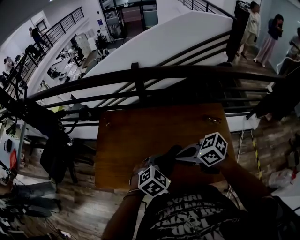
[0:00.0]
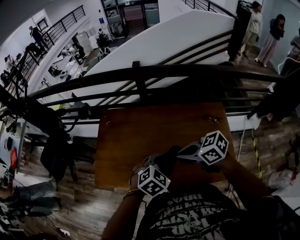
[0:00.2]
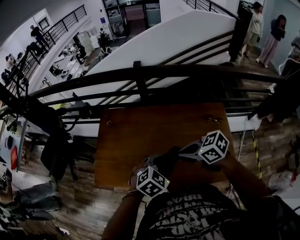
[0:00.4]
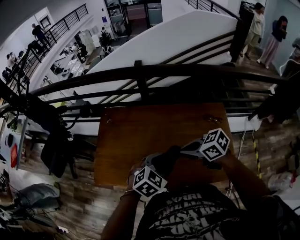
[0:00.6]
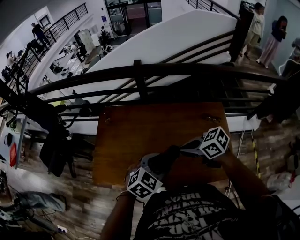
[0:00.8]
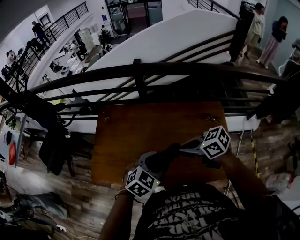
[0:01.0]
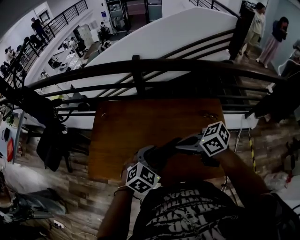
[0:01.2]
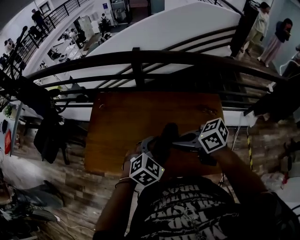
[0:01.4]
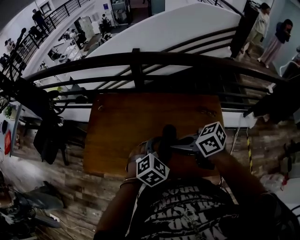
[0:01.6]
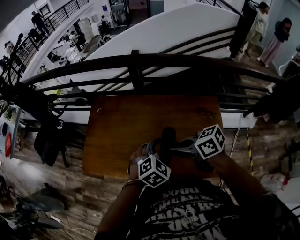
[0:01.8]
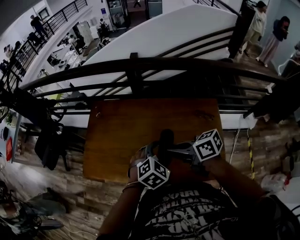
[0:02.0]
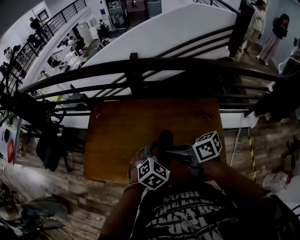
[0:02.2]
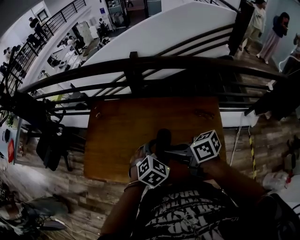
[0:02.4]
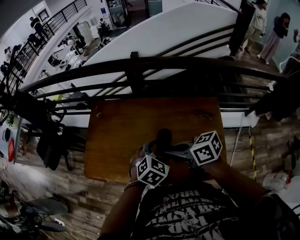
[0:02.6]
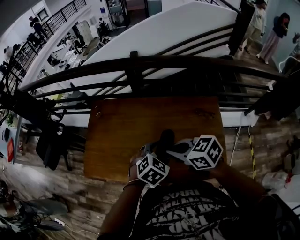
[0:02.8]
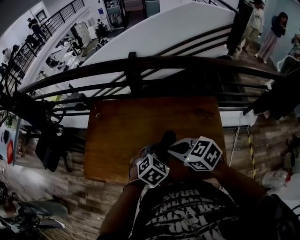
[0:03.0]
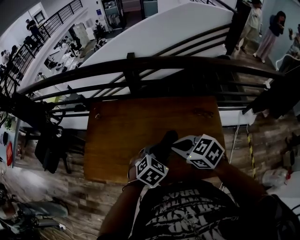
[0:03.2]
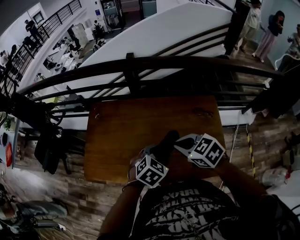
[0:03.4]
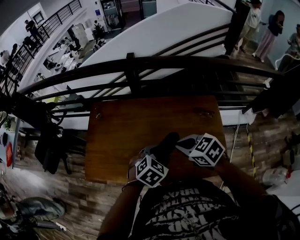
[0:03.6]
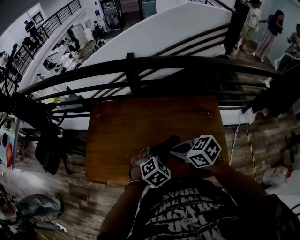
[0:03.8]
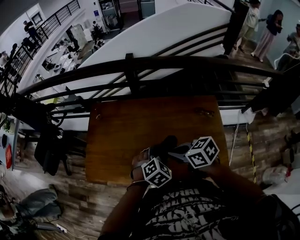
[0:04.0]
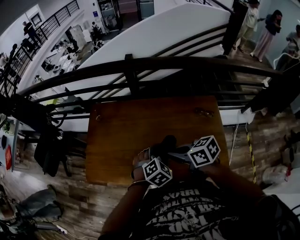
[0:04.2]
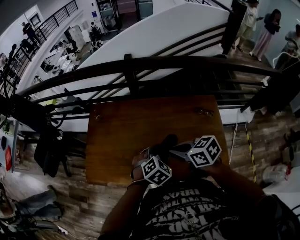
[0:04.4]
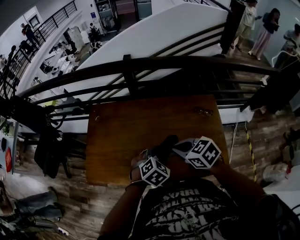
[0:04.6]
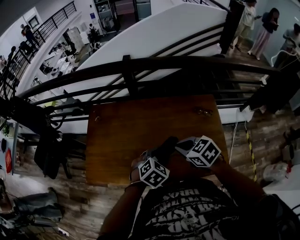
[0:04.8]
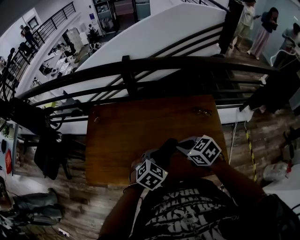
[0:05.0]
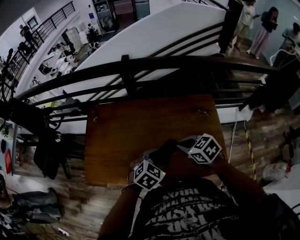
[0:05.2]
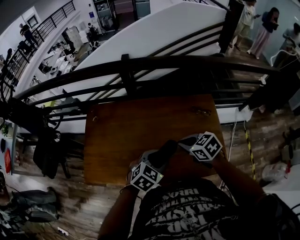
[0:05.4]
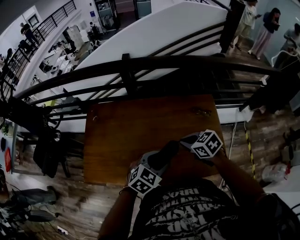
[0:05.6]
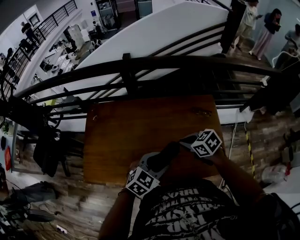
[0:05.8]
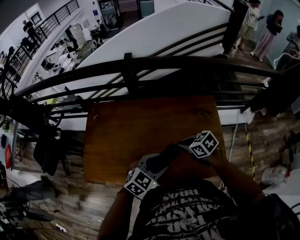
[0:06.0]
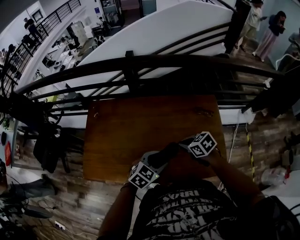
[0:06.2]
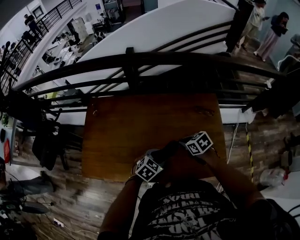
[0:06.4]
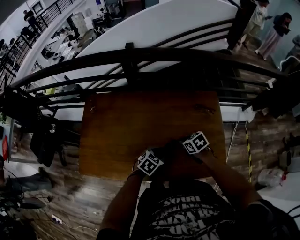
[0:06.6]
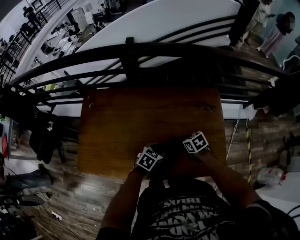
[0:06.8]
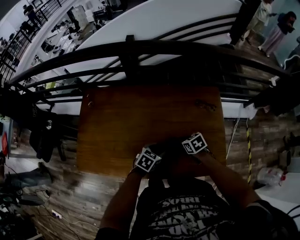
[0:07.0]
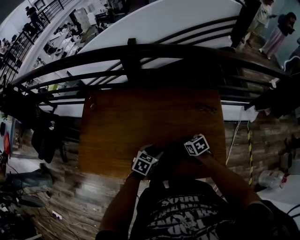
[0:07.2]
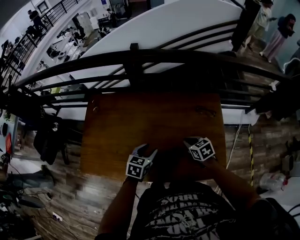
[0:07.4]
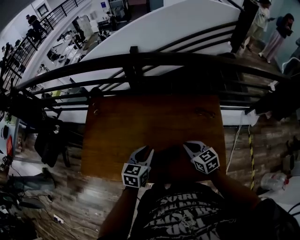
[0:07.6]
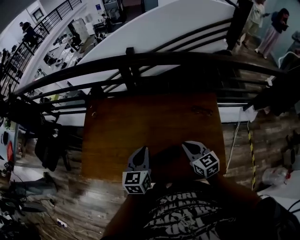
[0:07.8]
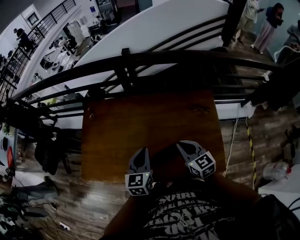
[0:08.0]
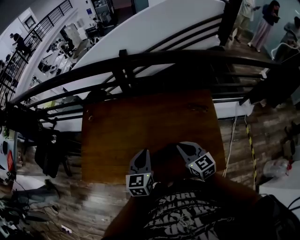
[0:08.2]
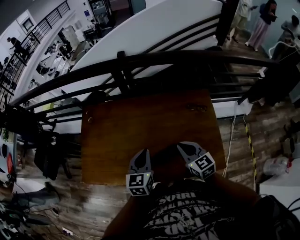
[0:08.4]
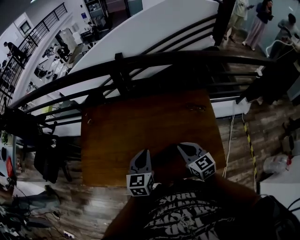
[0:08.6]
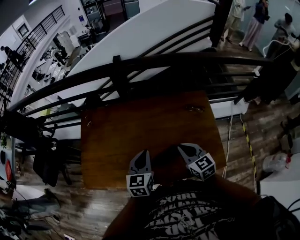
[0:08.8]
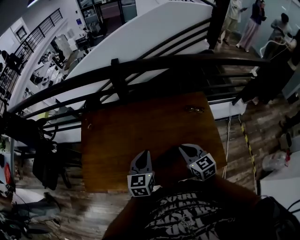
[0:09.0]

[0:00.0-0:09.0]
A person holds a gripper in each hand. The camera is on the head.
0:00.0 to 0:01.6: The grippers stay close to where they were, moving slightly.
0:01.6 to 0:03.0: The right gripper swivels some 30 degrees.
0:04.4 to 0:06.0: The left gripper shifts by some 5 cm, and turns by about 30 degrees, while the right gripper heads downward and to the right, covering about 10 cm.
0:06.0 to 0:07.6: The left gripper heads forward, covering roughly 5 cm, moves roughly 20 cm downward and comes back, and rotates roughly 40 degrees. Meanwhile the right gripper goes downward and returns, about 15 cm each way, and changes its angle by about 20 degrees.
0:07.6 to 0:09.0: The right gripper goes approximately 5 cm upward.

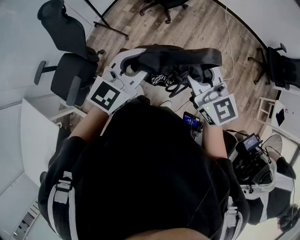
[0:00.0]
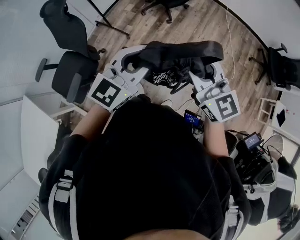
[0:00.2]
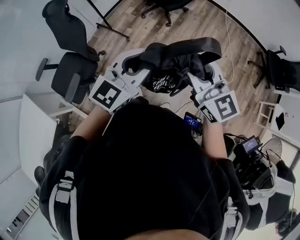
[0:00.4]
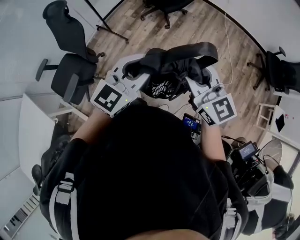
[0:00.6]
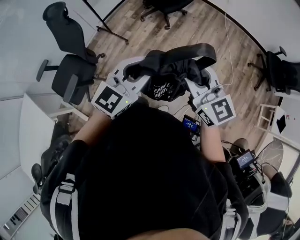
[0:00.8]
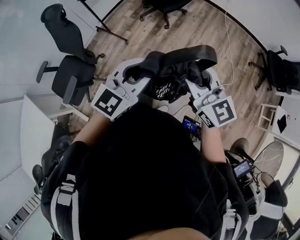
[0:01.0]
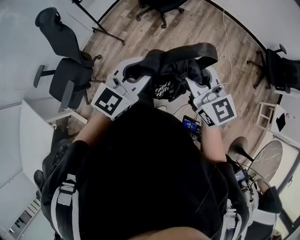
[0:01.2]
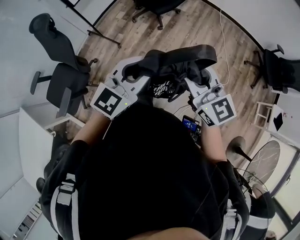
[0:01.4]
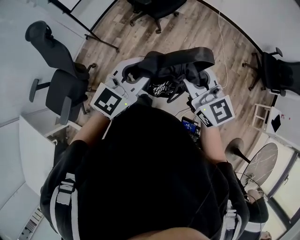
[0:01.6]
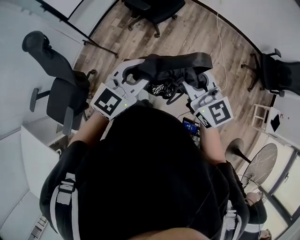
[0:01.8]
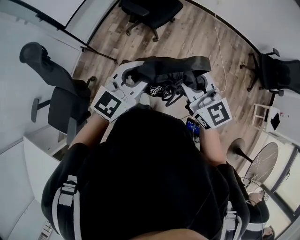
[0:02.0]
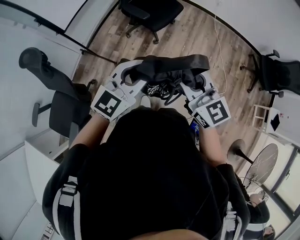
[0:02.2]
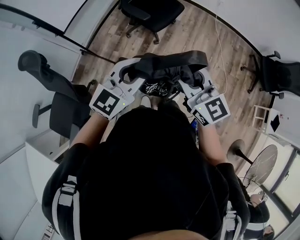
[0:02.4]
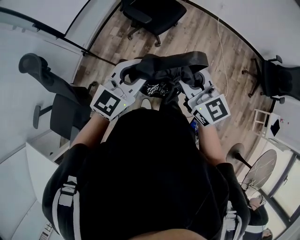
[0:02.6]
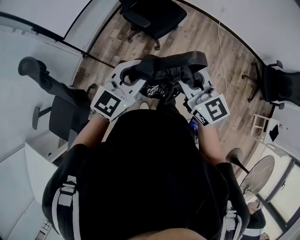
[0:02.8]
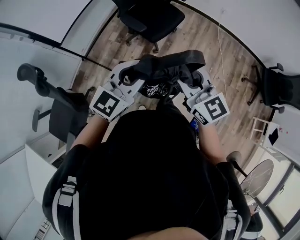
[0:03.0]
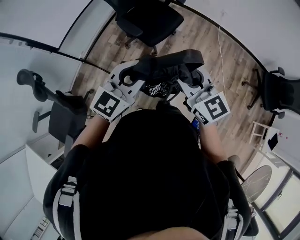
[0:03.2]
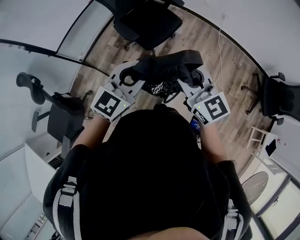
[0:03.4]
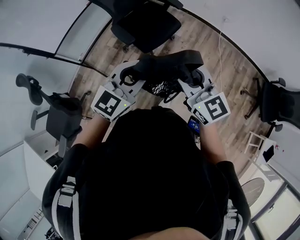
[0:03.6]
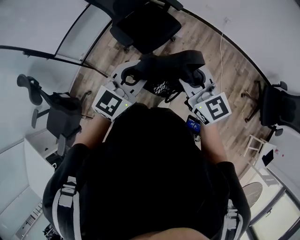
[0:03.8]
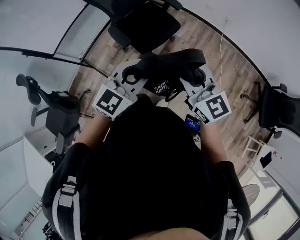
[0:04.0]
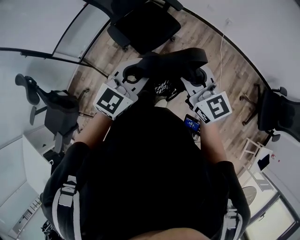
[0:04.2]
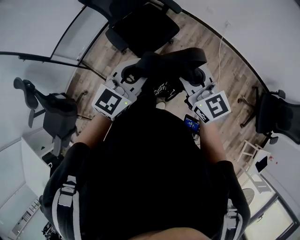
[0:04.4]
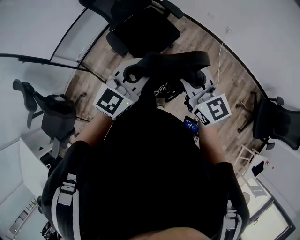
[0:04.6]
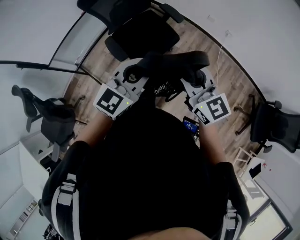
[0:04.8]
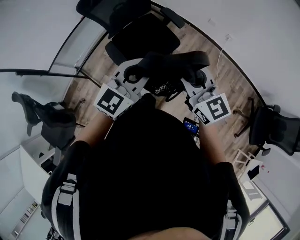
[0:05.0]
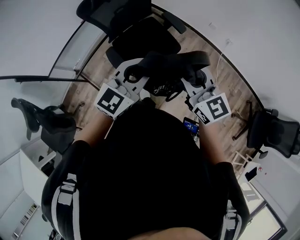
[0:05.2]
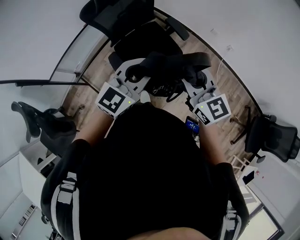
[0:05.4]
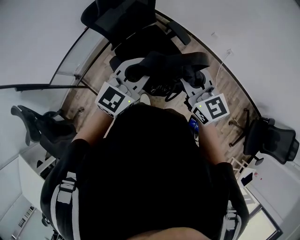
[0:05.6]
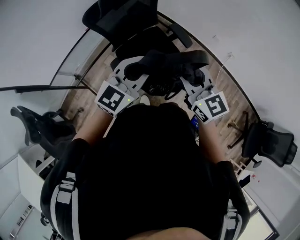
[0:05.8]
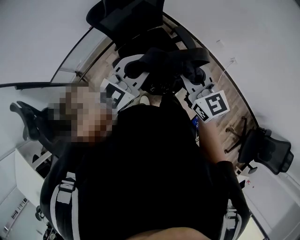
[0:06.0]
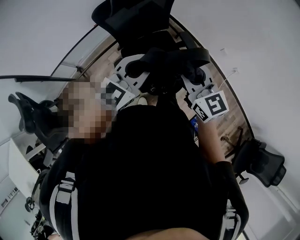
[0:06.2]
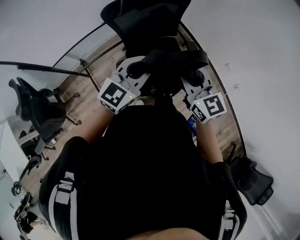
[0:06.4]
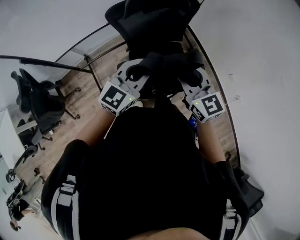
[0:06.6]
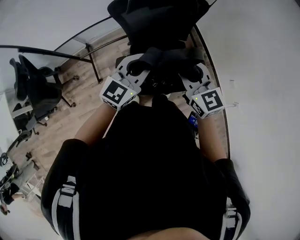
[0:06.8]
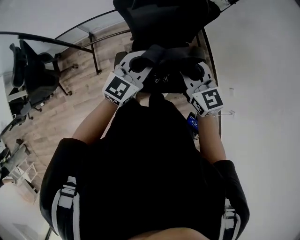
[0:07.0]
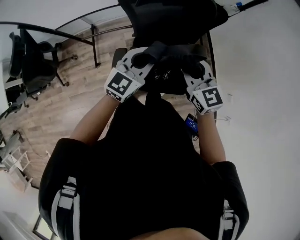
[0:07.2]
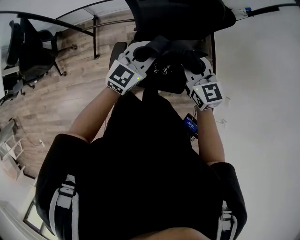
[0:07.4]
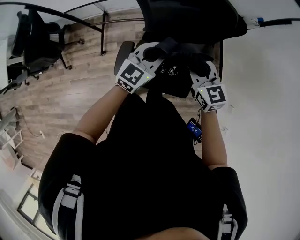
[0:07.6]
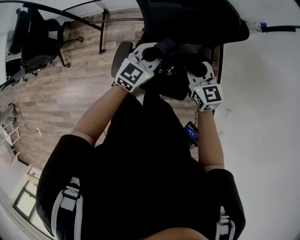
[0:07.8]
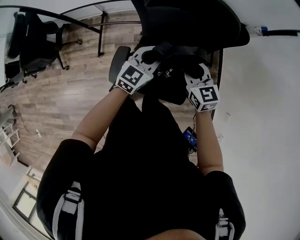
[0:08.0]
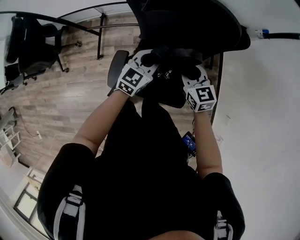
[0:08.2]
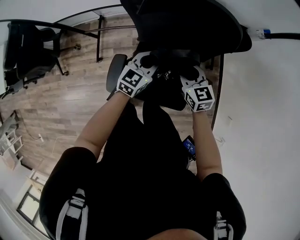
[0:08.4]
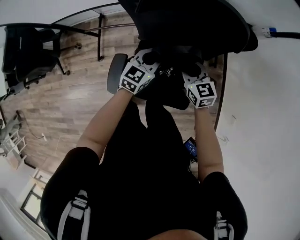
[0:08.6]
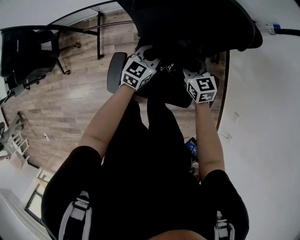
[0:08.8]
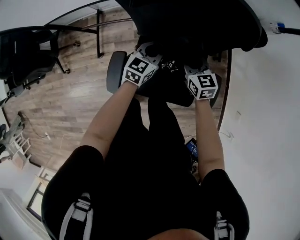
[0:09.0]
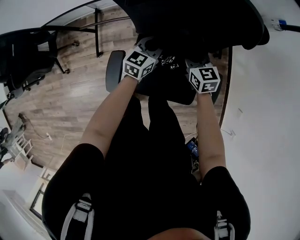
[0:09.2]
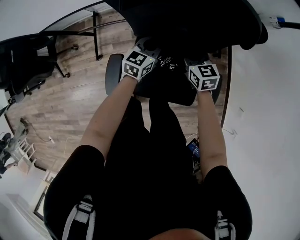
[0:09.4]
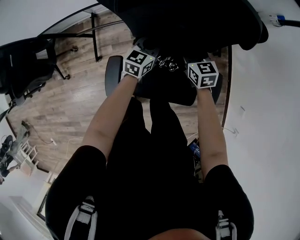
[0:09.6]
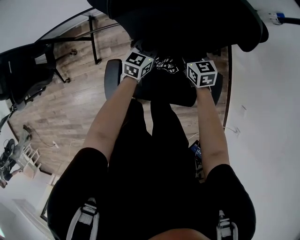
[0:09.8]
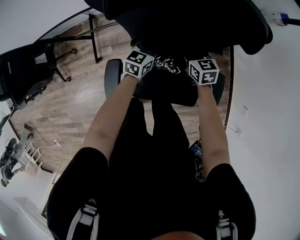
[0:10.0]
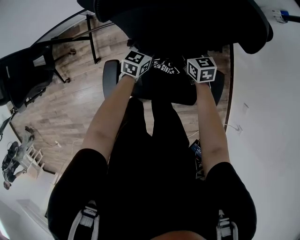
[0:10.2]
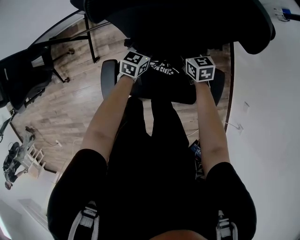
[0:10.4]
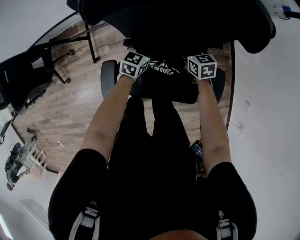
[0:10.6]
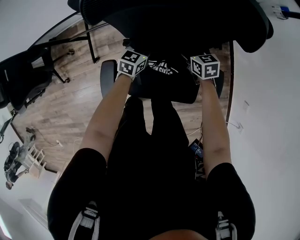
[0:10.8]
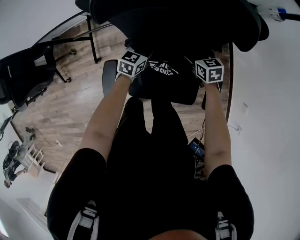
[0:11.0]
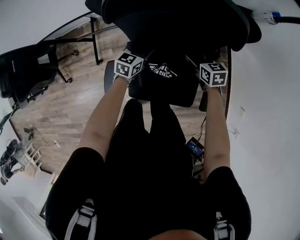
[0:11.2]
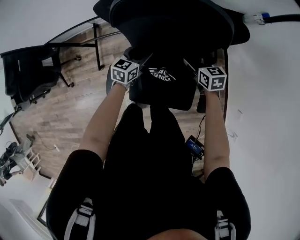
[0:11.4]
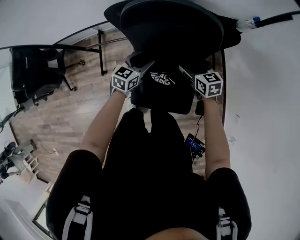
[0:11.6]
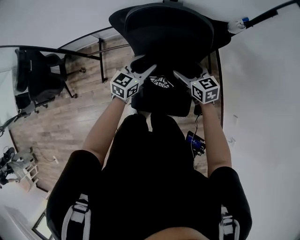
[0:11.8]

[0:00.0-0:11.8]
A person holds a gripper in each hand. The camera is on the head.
0:00.0 to 0:01.4: Both grippers travel together to the right and forward, some 10 cm.
0:01.4 to 0:03.0: Both grippers move forward, some 35 cm.
0:03.0 to 0:04.4: The left gripper moves to the right and forward, approximately 30 cm; the right gripper travels forward and to the right by roughly 30 cm.
0:04.4 to 0:06.0: The grippers both shift forward by about 35 cm.
0:06.0 to 0:07.4: The right gripper ends up roughly 30 cm from where it was, and turns by about 40 degrees, while the left gripper moves roughly 30 cm, and changes its angle by approximately 40 degrees.
0:07.4 to 0:08.8: Both grippers move downward and forward, roughly 25 cm.
0:08.8 to 0:10.4: Both grippers travel together downward, about 15 cm.
0:10.4 to 0:11.8: The grippers both shift upward by about 25 cm. The right gripper opens its fingers, while the left gripper opens its fingers.

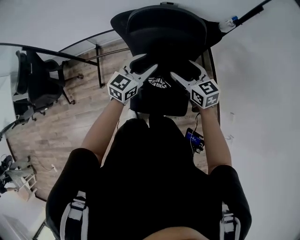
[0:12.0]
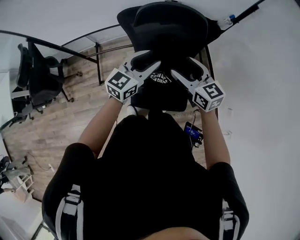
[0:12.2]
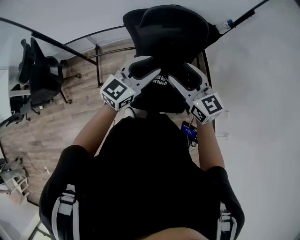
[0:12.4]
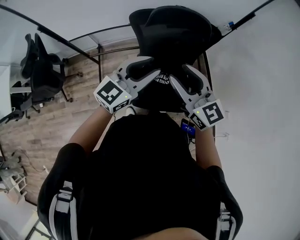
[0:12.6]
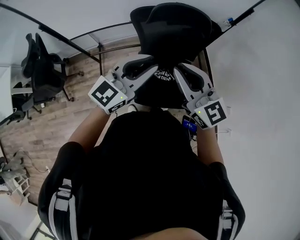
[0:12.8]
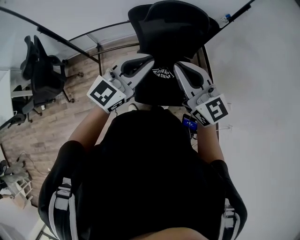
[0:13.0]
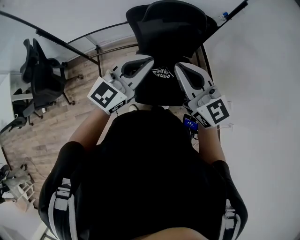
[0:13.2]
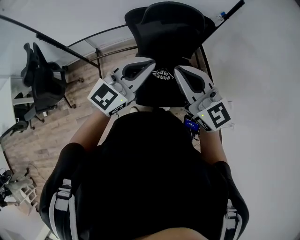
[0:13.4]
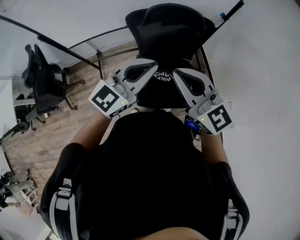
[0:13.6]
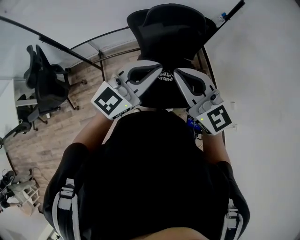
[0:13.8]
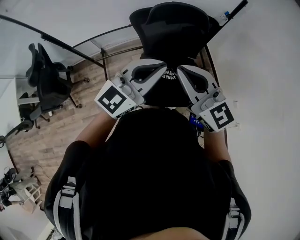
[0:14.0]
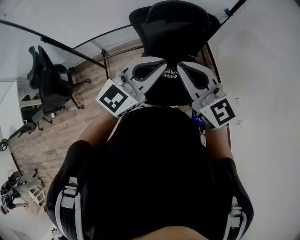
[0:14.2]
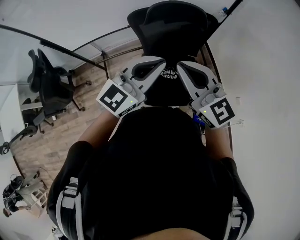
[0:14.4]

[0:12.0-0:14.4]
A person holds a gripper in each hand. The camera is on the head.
0:12.0 to 0:13.2: Both grippers travel together upward and backward, approximately 30 cm. The left gripper turns by roughly 20 degrees, and closes its fingers; the right gripper rotates roughly 30 degrees, and closes.
0:13.2 to 0:14.4: The grippers stay close to where they were, moving slightly.
